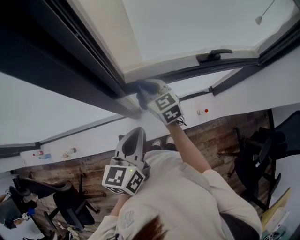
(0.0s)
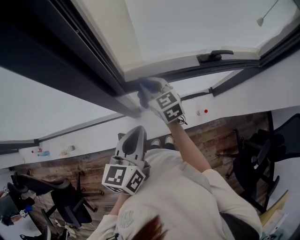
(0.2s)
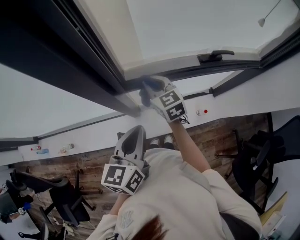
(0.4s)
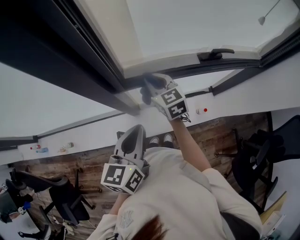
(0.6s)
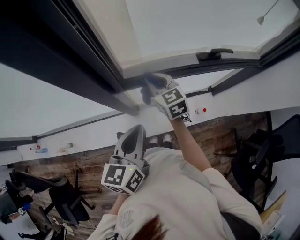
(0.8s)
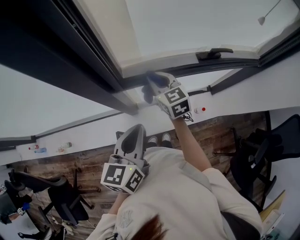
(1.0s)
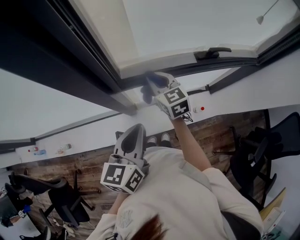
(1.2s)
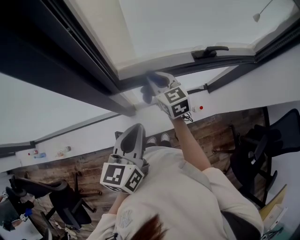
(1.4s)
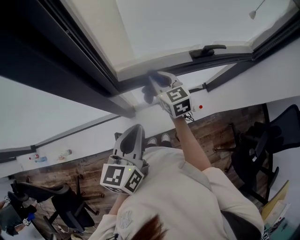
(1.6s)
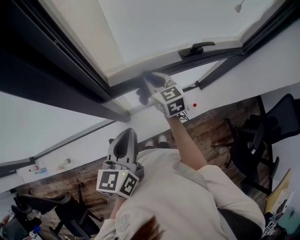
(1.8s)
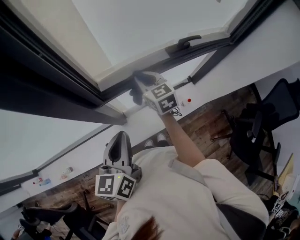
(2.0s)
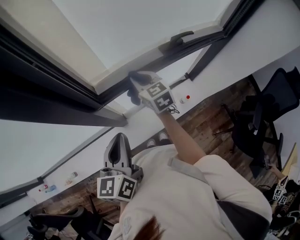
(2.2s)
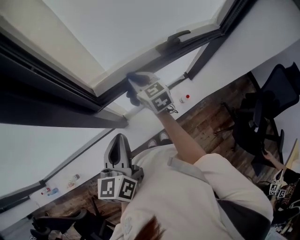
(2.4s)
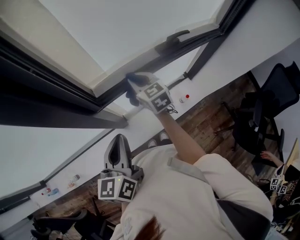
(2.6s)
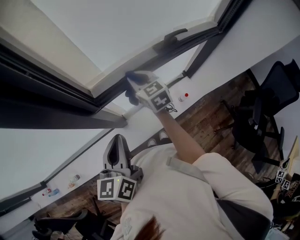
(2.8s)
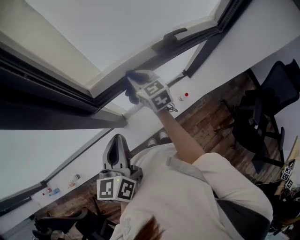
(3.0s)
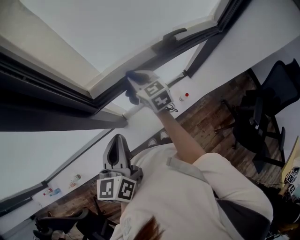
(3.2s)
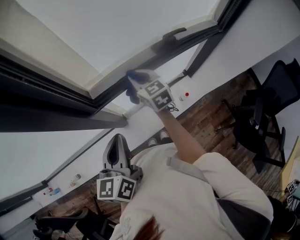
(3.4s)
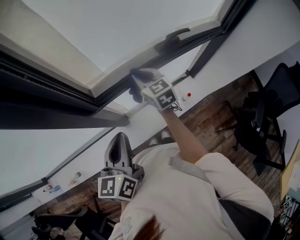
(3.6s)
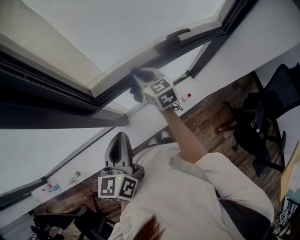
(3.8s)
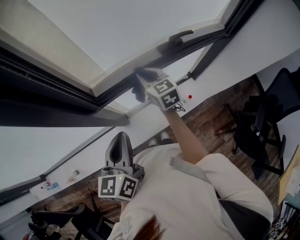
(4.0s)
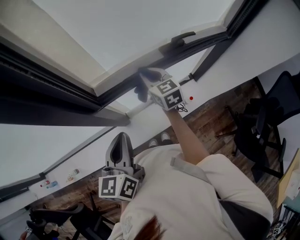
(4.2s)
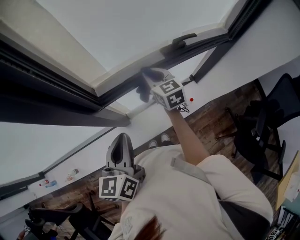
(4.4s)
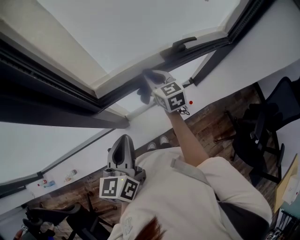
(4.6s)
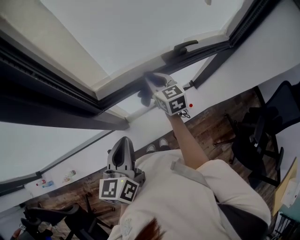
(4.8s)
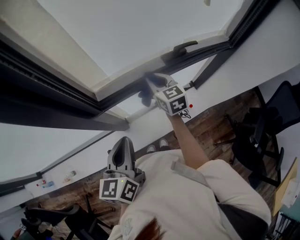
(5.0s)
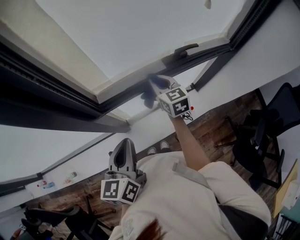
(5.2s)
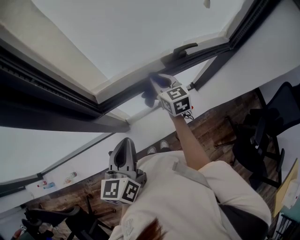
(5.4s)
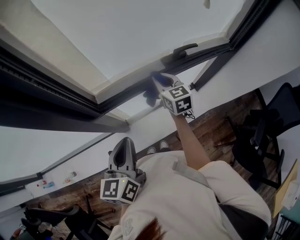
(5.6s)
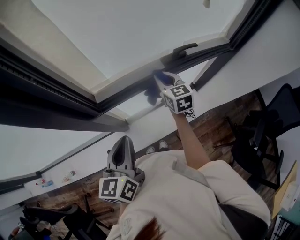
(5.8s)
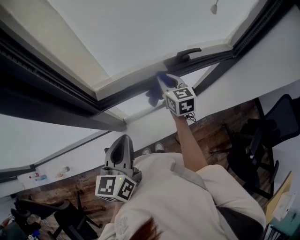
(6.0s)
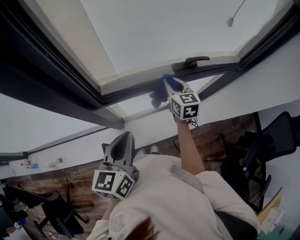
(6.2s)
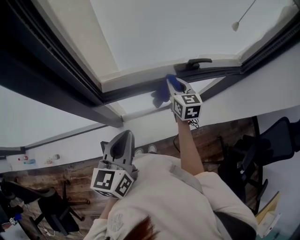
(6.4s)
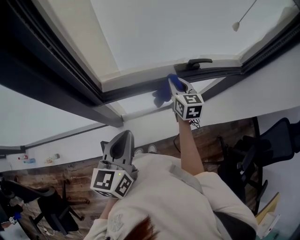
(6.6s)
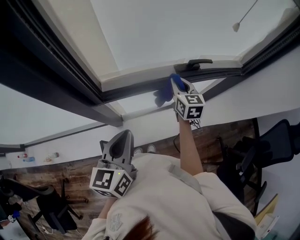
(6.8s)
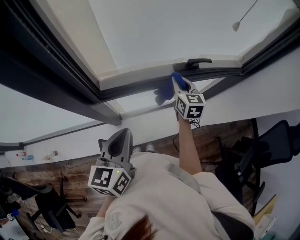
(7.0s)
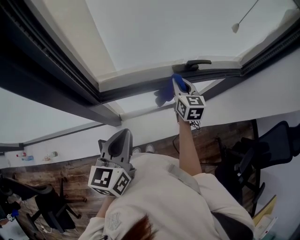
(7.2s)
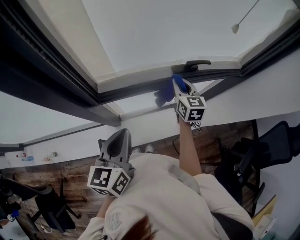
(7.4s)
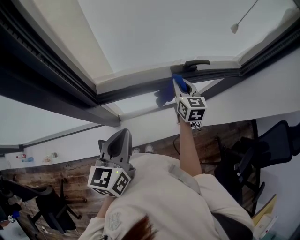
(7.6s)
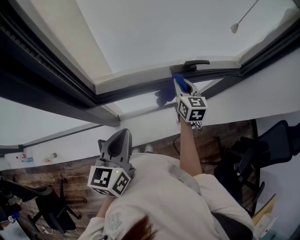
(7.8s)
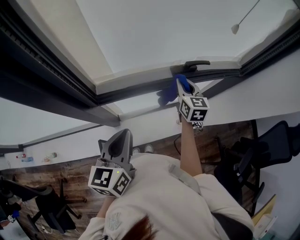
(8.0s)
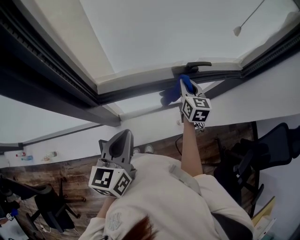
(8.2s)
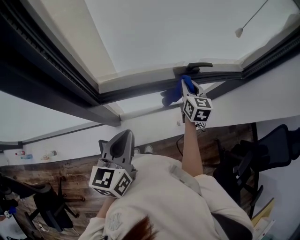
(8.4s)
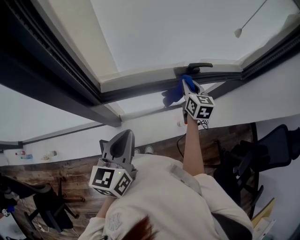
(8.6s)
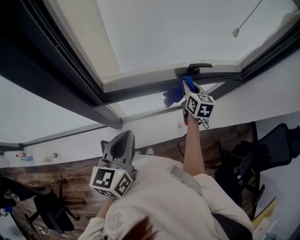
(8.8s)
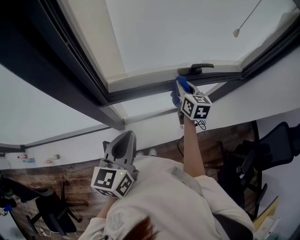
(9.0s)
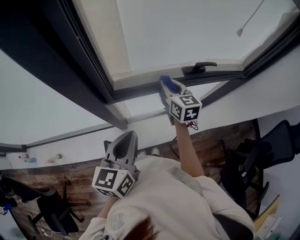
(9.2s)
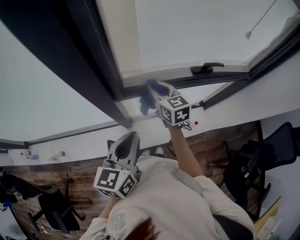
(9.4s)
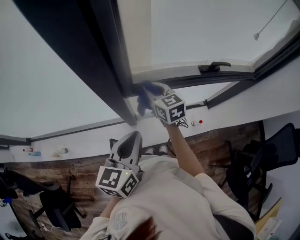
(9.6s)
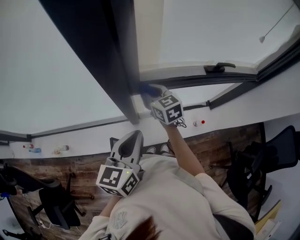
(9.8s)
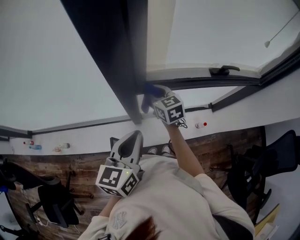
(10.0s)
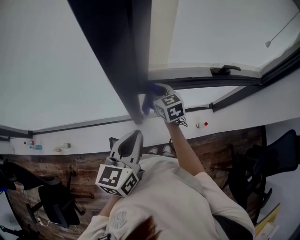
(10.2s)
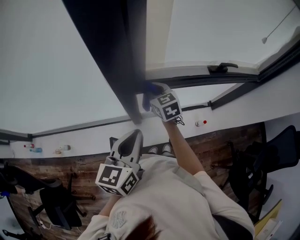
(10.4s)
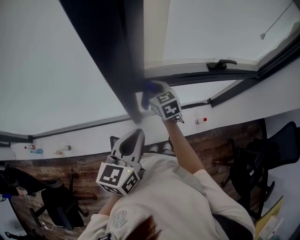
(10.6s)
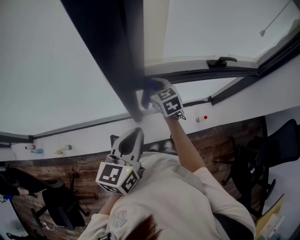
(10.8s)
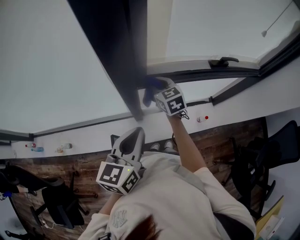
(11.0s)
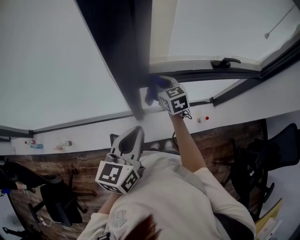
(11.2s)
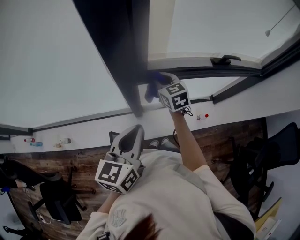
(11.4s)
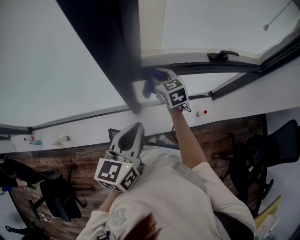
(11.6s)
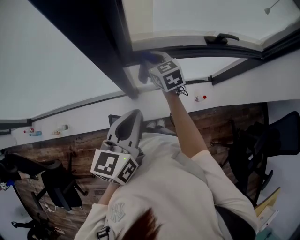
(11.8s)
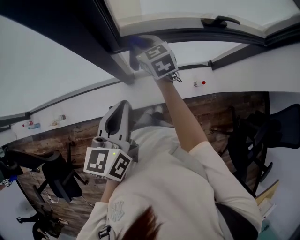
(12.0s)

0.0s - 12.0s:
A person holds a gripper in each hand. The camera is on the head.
0.0s - 1.6s: The right gripper travels to the right by approximately 10 cm.
1.6s - 3.0s: There are only small adjustments of the grippers.
3.0s - 4.4s: The grippers move only a little.
4.4s - 6.0s: The right gripper travels to the right by approximately 5 cm.
6.0s - 7.6s: The right gripper shifts roughly 5 cm to the right.
7.6s - 9.0s: The grippers make only small movements.
9.0s - 10.4s: The right gripper travels to the left by roughly 30 cm, and turns by some 30 degrees. Meanwhile the left gripper heads to the left, covering approximately 10 cm.
10.4s - 12.0s: The left gripper shifts by approximately 5 cm.

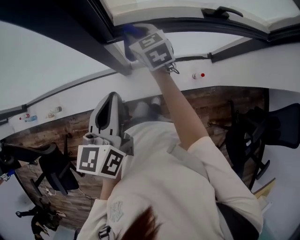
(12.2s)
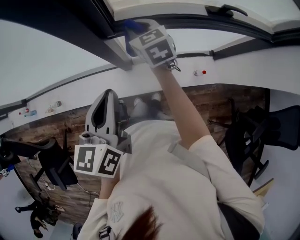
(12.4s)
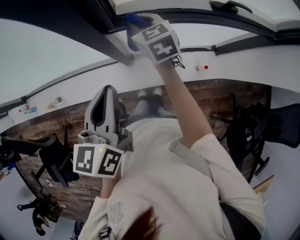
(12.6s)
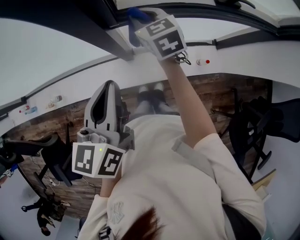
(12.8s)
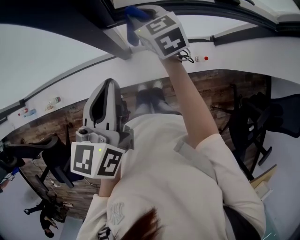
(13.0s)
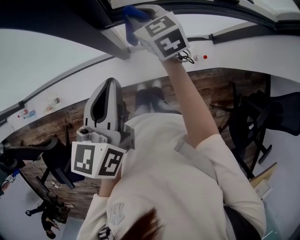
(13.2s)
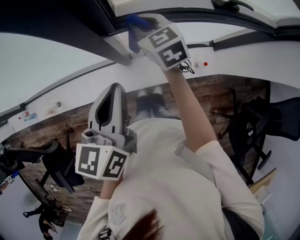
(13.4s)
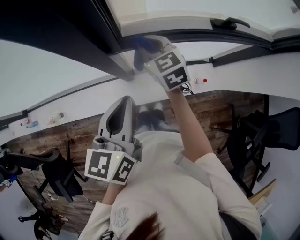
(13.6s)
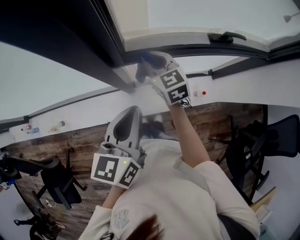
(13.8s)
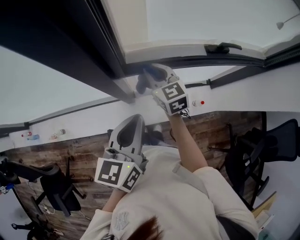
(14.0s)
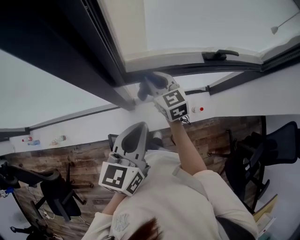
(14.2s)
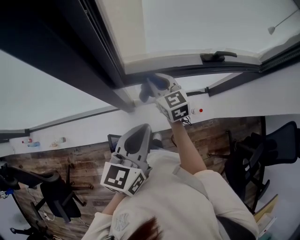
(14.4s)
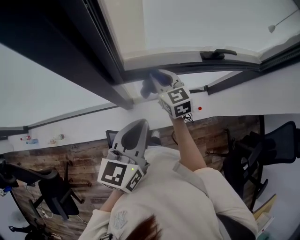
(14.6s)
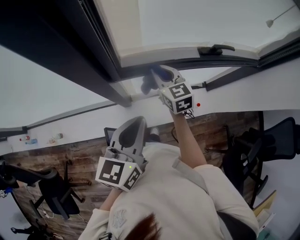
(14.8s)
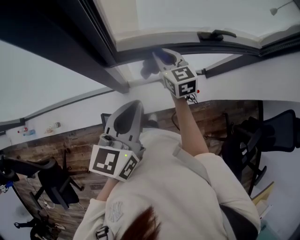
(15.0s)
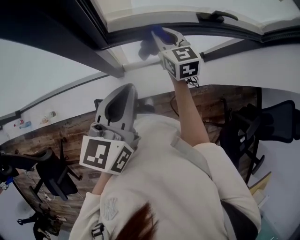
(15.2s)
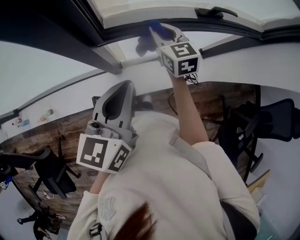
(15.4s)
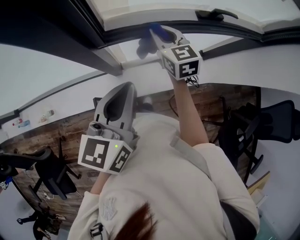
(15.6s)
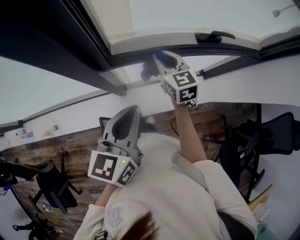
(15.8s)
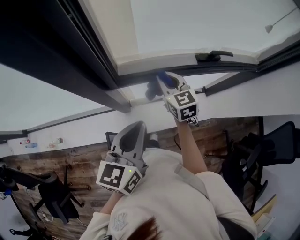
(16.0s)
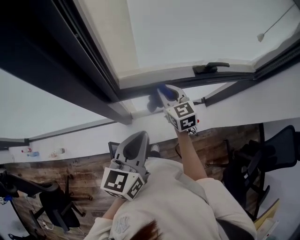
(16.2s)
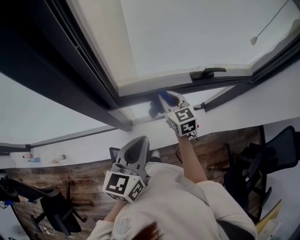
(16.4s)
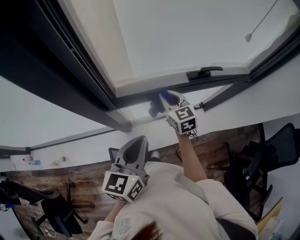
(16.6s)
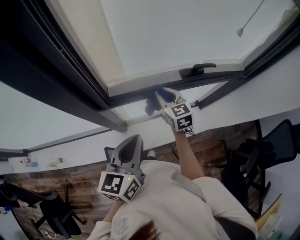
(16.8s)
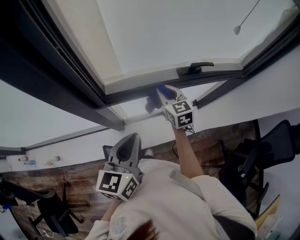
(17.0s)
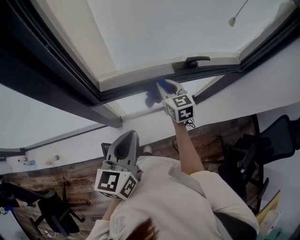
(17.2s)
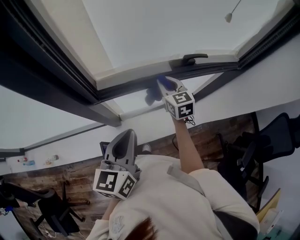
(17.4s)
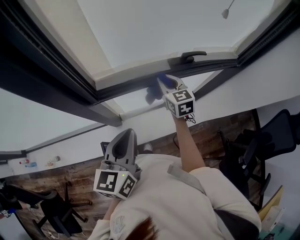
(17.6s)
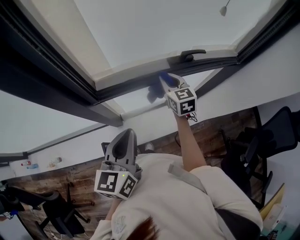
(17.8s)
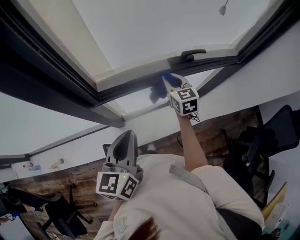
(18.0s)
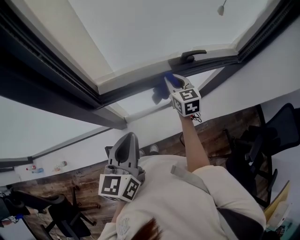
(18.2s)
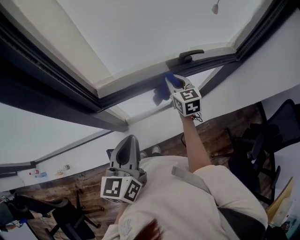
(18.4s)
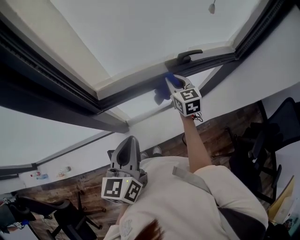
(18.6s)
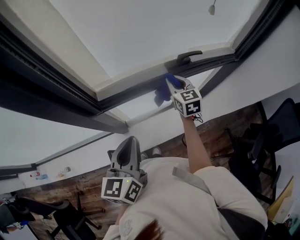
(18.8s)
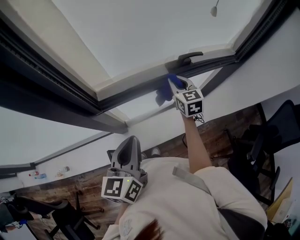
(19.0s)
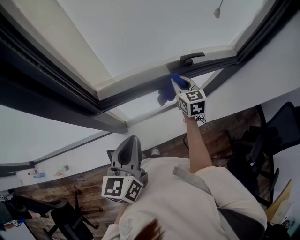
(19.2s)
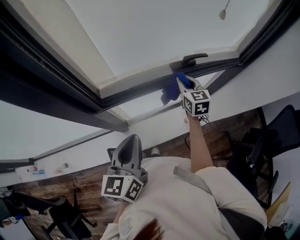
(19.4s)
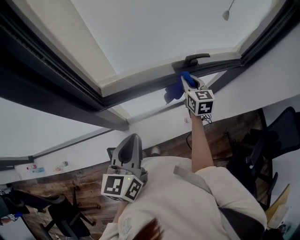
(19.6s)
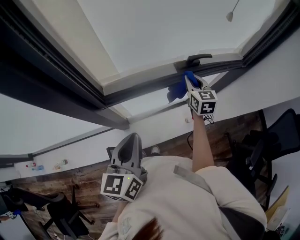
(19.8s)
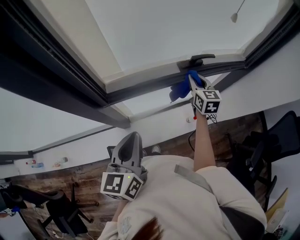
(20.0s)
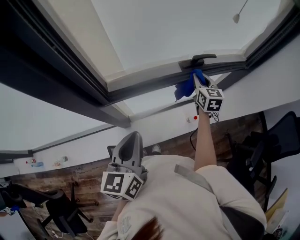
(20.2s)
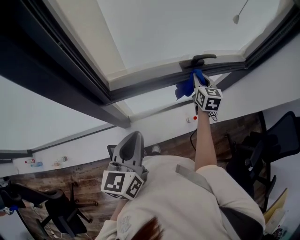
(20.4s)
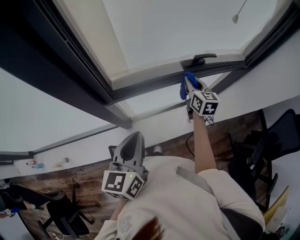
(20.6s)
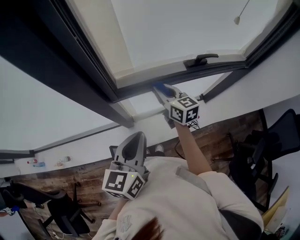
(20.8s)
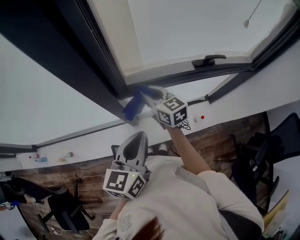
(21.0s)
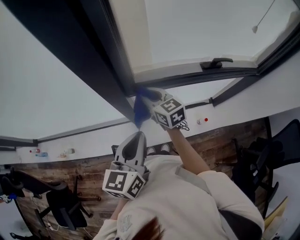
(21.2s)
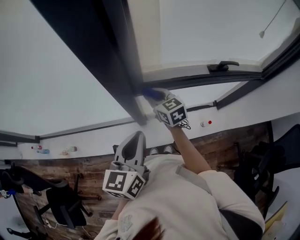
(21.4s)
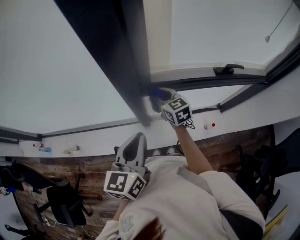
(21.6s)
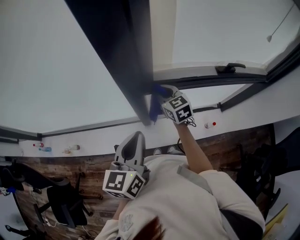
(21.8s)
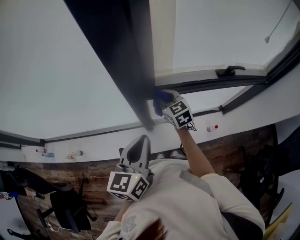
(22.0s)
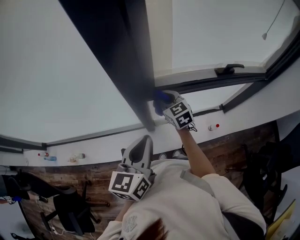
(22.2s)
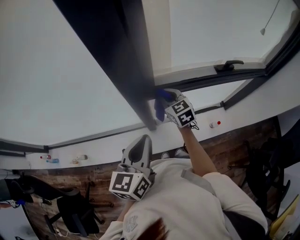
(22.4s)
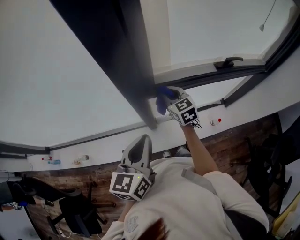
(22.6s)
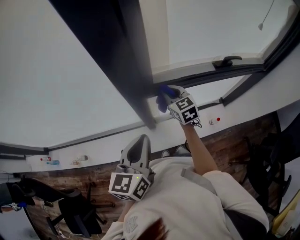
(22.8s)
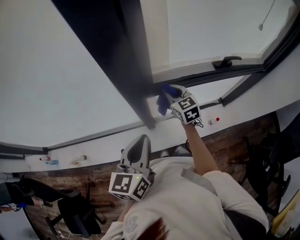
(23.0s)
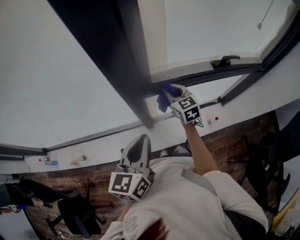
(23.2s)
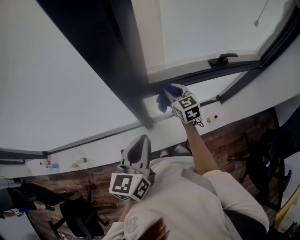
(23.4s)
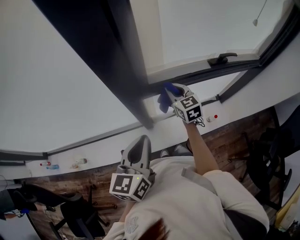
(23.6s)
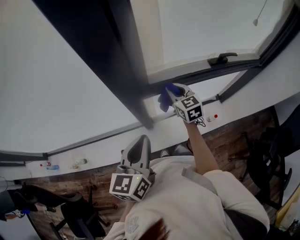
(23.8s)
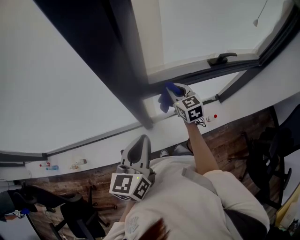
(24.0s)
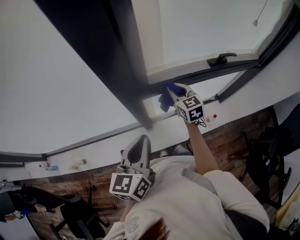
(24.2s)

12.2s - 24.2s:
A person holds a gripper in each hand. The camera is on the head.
12.2s - 13.8s: The grippers make only small movements.
13.8s - 15.2s: The right gripper is displaced to the right by approximately 10 cm.
15.2s - 16.6s: The grippers stay close to where they were, moving slightly.
16.6s - 18.2s: The right gripper heads to the right, covering approximately 10 cm.
18.2s - 19.8s: The right gripper heads to the right, covering approximately 5 cm.
19.8s - 21.2s: The right gripper heads to the left, covering some 35 cm, and changes its angle by approximately 40 degrees. The left gripper is displaced to the left by approximately 10 cm.
21.2s - 22.6s: The left gripper moves to the left, some 5 cm.
22.6s - 24.2s: The right gripper is displaced to the right by some 5 cm.
